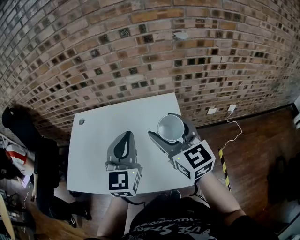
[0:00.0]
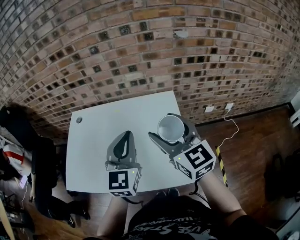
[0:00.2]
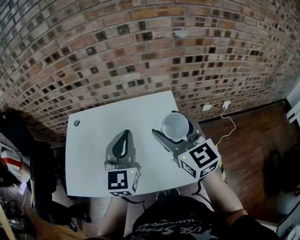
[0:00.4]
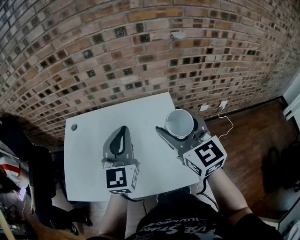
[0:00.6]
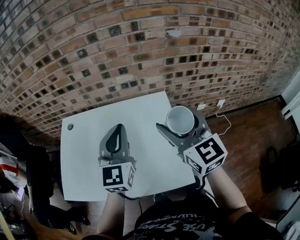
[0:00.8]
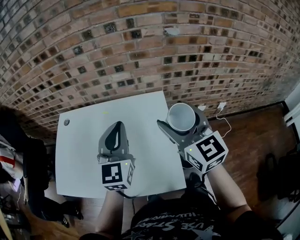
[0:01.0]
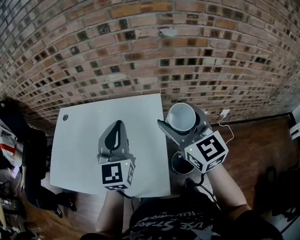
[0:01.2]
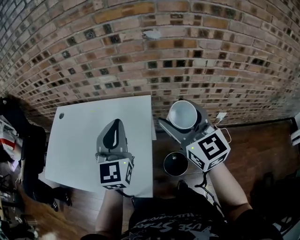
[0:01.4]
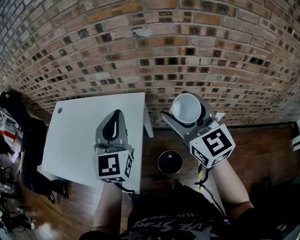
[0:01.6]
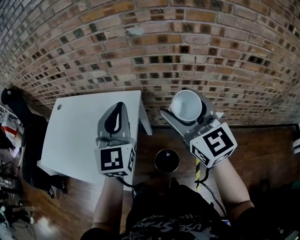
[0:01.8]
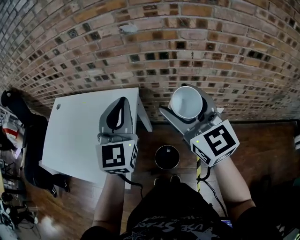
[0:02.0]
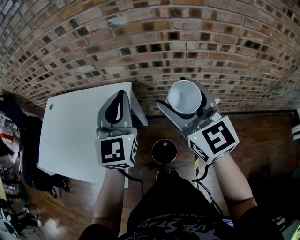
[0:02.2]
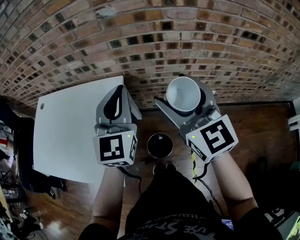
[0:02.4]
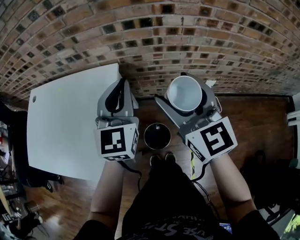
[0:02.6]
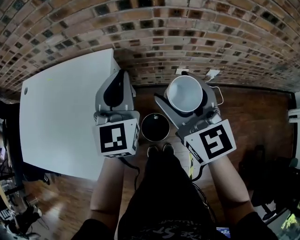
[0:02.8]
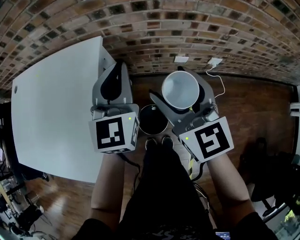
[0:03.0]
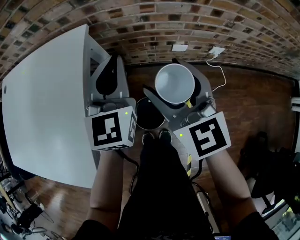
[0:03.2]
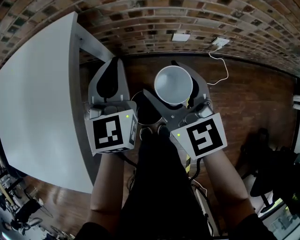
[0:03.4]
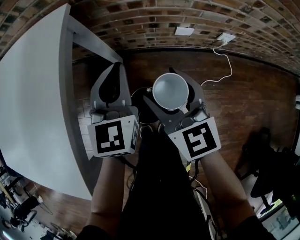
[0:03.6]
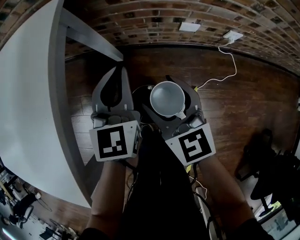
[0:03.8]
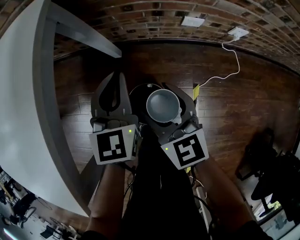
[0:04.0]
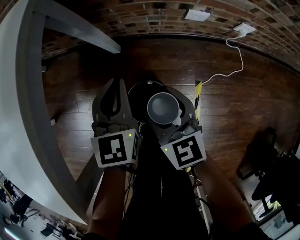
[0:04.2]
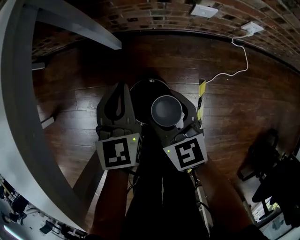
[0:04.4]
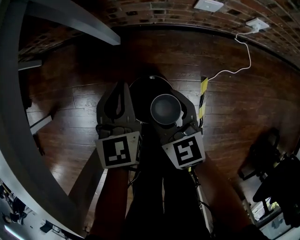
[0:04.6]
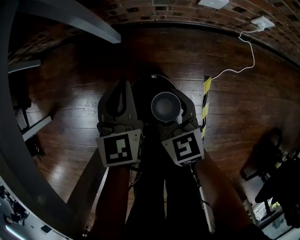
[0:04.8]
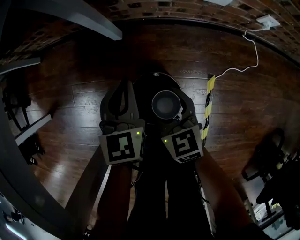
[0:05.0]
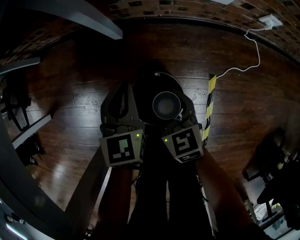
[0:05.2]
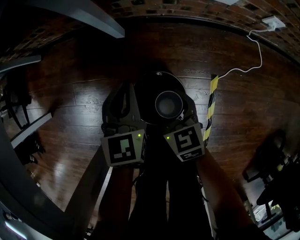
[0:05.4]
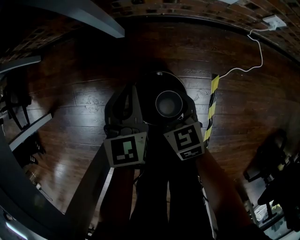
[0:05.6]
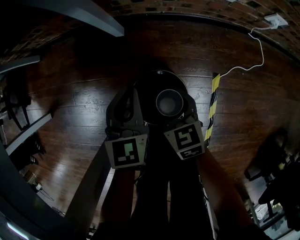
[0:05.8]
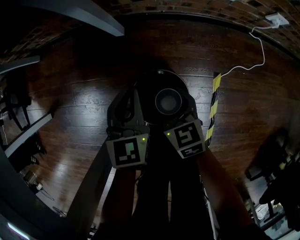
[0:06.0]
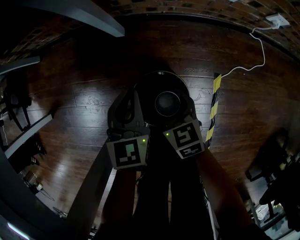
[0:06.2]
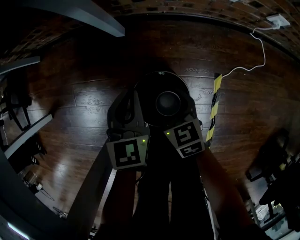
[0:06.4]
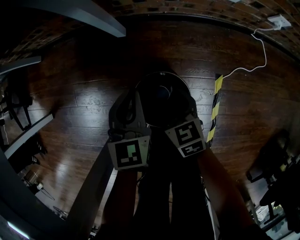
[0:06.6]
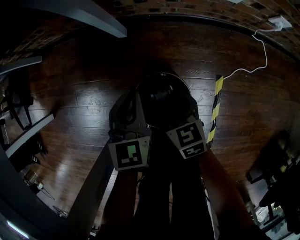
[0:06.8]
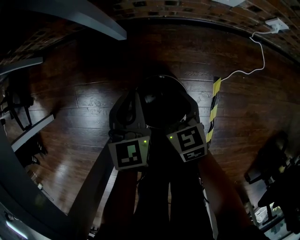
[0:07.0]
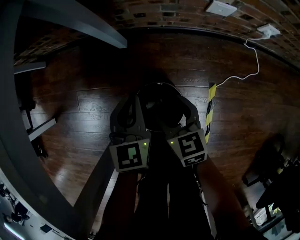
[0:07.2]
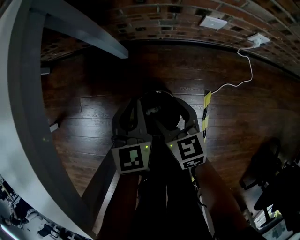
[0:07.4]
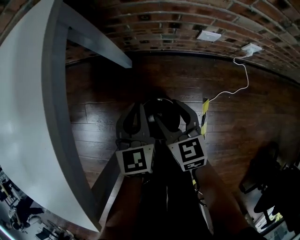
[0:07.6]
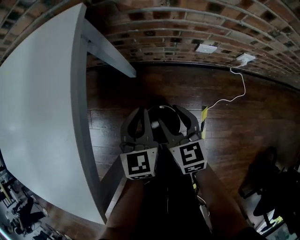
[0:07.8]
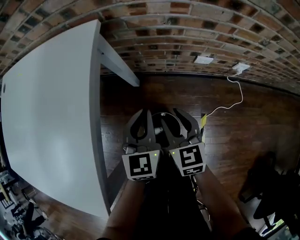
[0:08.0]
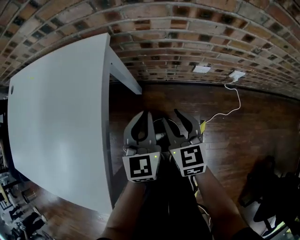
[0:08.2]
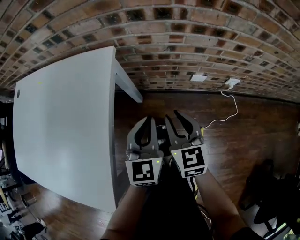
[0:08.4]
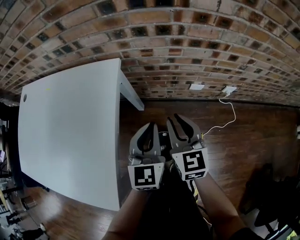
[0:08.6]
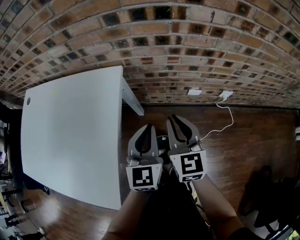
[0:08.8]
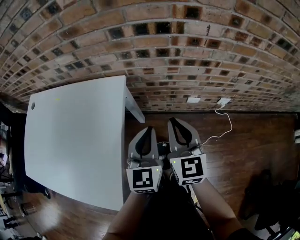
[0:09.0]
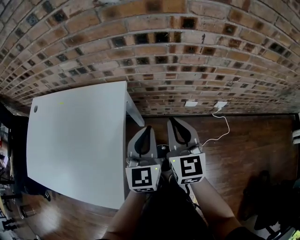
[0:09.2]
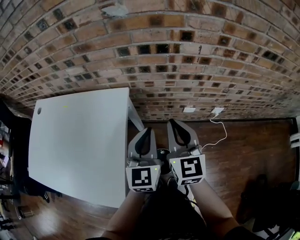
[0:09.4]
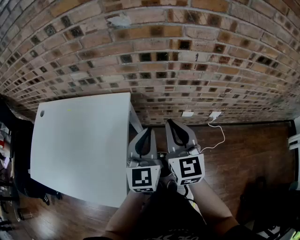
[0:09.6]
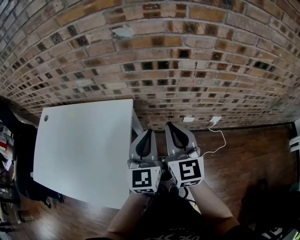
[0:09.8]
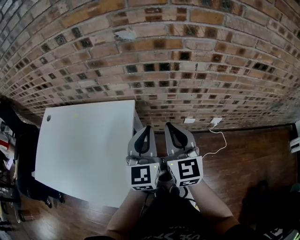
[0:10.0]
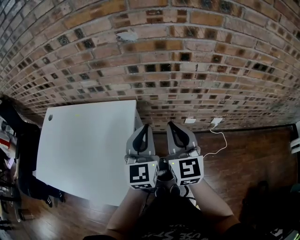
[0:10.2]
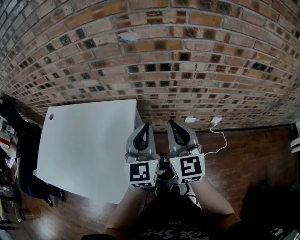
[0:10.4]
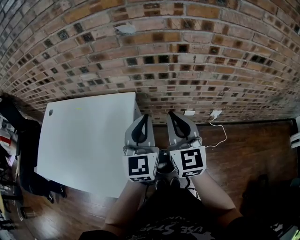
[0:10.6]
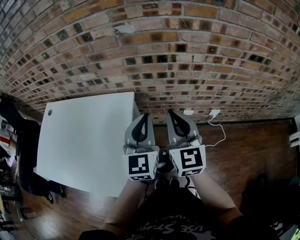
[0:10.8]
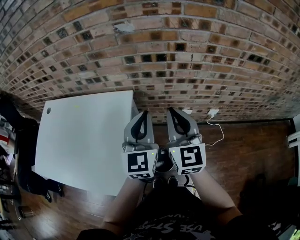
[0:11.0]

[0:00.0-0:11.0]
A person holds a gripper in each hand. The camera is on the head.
0.0 to 1.6 s: Both grippers travel together to the right, approximately 25 cm.
1.6 to 3.2 s: The right gripper is displaced downward by about 25 cm; the left gripper moves downward and to the right, some 30 cm.
3.2 to 4.8 s: Both grippers travel together downward, about 40 cm. The left gripper turns by about 20 degrees, while the right gripper changes its angle by about 20 degrees.
4.8 to 6.2 s: The grippers both shift downward by some 10 cm.
6.2 to 7.8 s: Both grippers travel together upward, about 20 cm. The right gripper closes up.
7.8 to 9.4 s: Both grippers move upward, about 35 cm. The right gripper changes its angle by some 30 degrees, and closes.
9.4 to 11.0 s: The grippers both shift upward by approximately 10 cm.

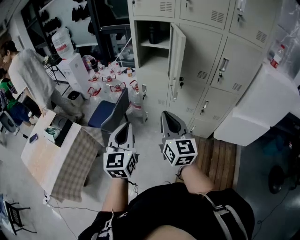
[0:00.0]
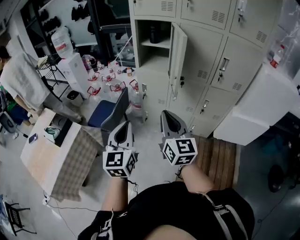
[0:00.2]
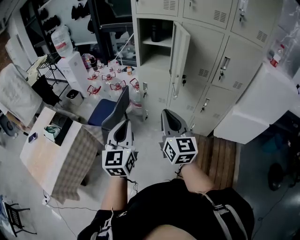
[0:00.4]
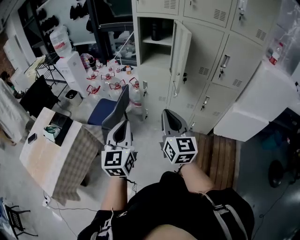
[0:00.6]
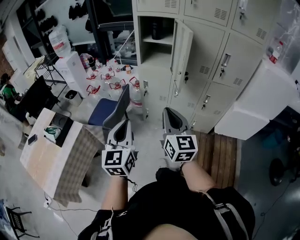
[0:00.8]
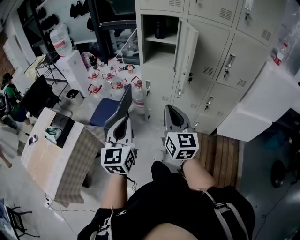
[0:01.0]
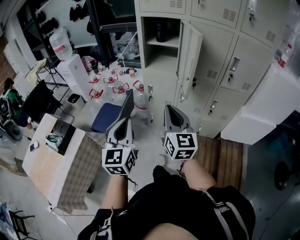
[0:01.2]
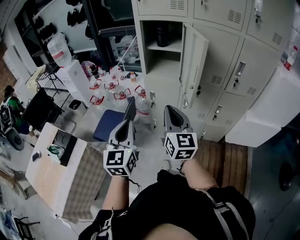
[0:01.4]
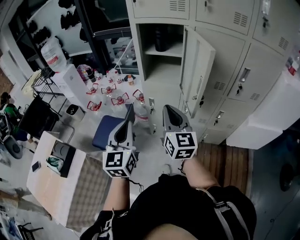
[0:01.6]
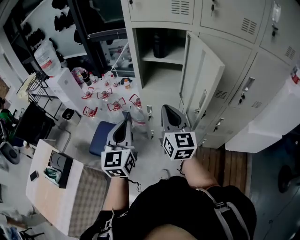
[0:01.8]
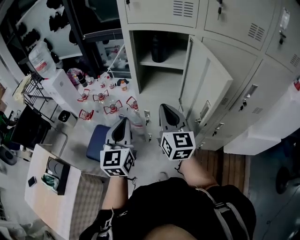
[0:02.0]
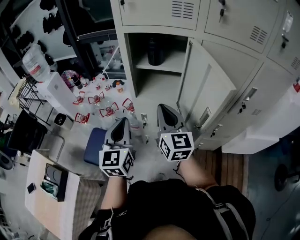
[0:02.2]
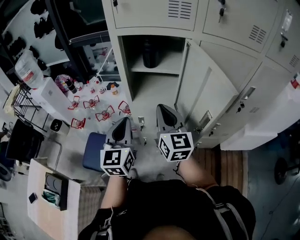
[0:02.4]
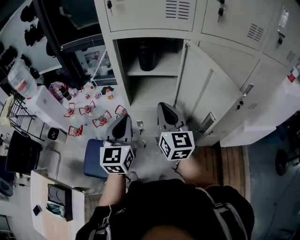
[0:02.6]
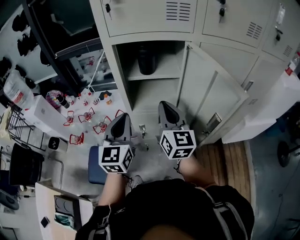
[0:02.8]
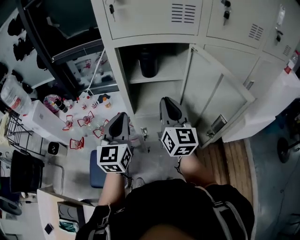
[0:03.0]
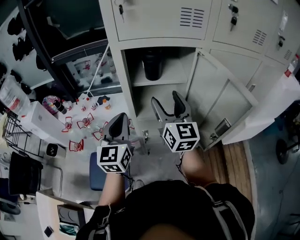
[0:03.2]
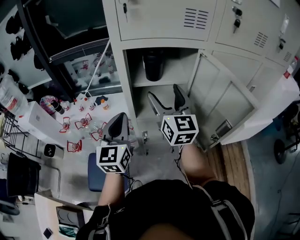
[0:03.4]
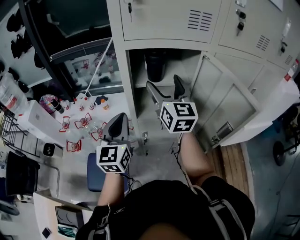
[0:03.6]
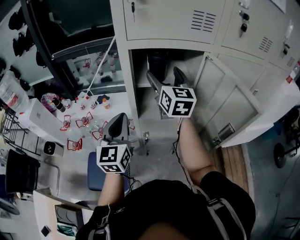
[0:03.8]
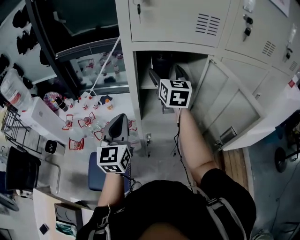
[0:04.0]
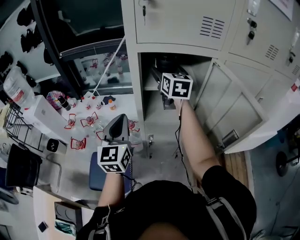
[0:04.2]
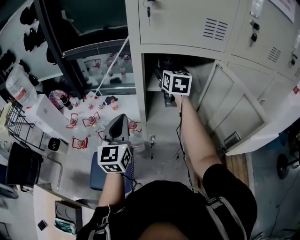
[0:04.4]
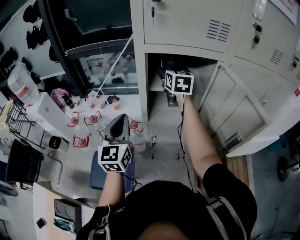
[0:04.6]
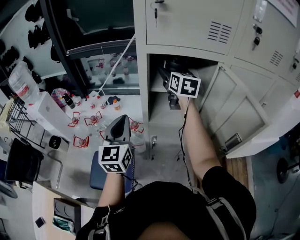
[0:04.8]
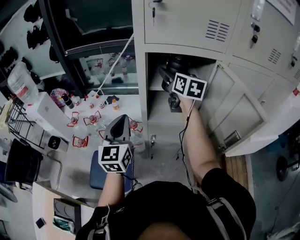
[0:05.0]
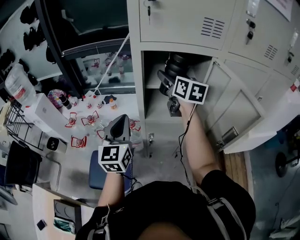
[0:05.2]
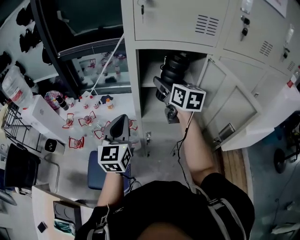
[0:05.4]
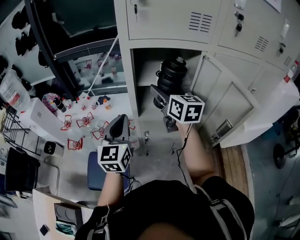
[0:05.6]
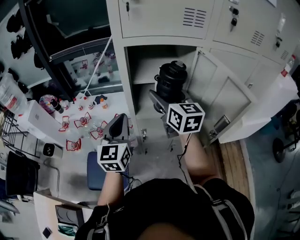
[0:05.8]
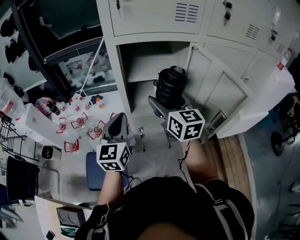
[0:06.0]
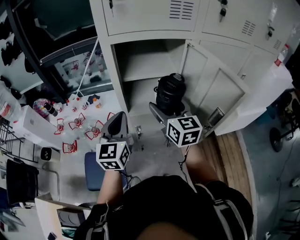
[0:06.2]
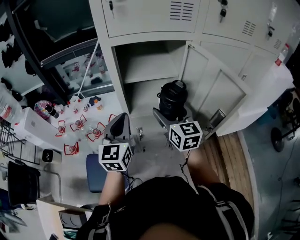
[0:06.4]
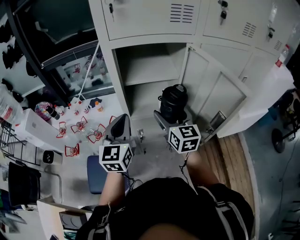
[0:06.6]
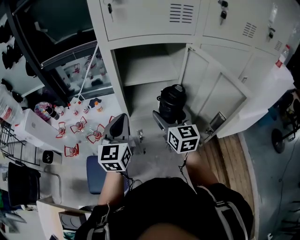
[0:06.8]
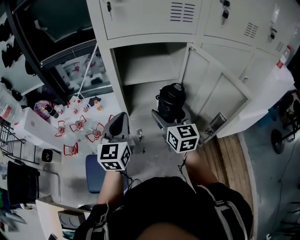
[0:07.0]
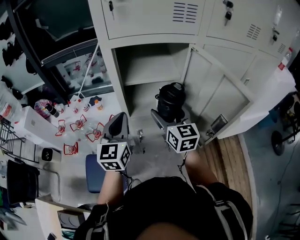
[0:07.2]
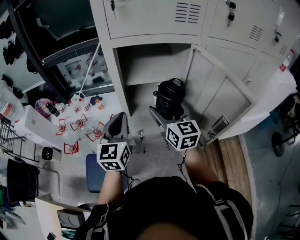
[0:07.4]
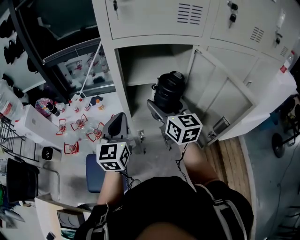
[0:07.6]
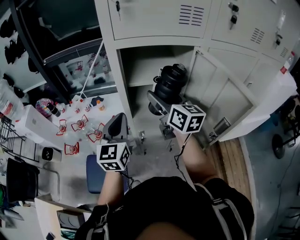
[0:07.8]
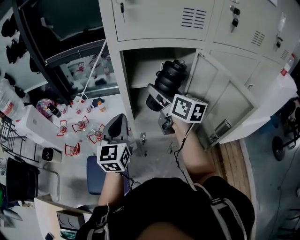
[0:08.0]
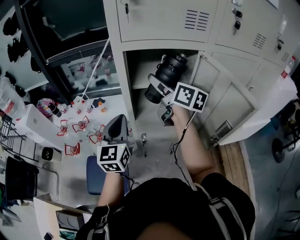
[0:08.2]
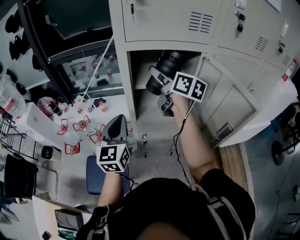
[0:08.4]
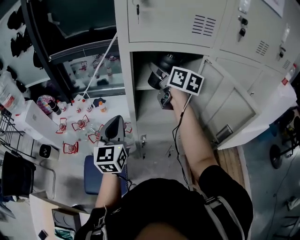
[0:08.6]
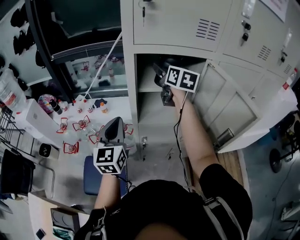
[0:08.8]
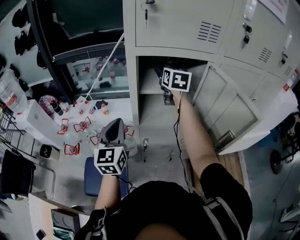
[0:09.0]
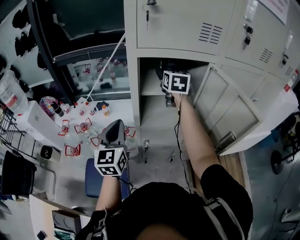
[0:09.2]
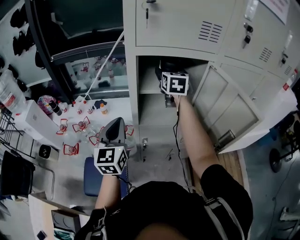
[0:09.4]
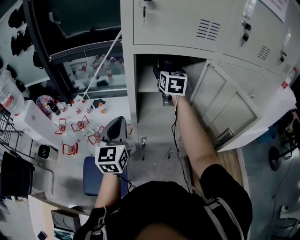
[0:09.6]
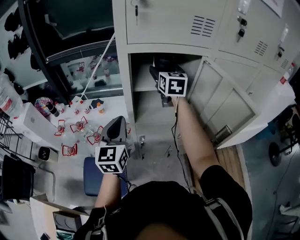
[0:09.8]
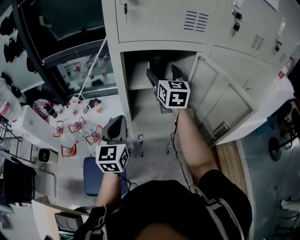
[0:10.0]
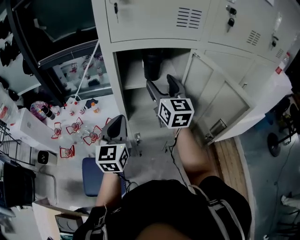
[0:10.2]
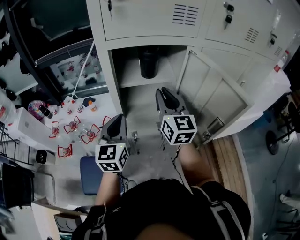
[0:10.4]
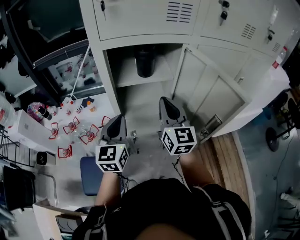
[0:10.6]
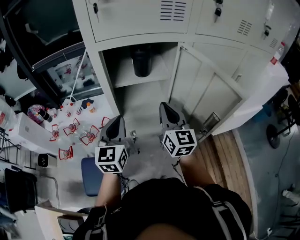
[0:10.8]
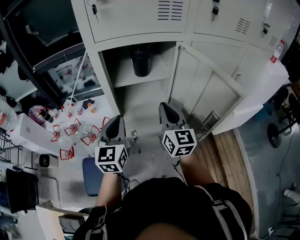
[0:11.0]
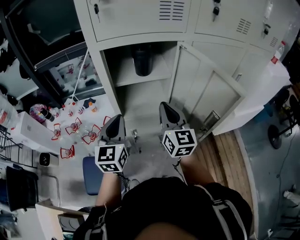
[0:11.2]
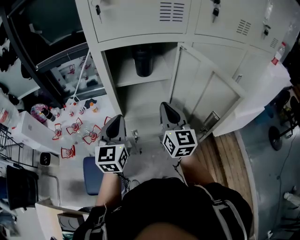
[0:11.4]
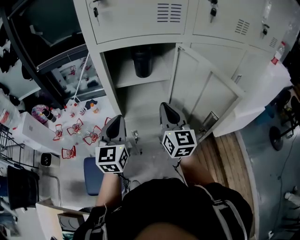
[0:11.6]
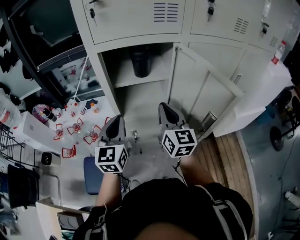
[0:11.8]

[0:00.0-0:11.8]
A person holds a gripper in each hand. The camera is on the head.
0.0 to 1.4 s: The grippers both shift forward and to the left by roughly 15 cm.
1.4 to 3.0 s: Both grippers move forward, some 40 cm.
3.0 to 4.4 s: The right gripper heads forward, covering approximately 20 cm, and opens; the left gripper moves to the left, roughly 5 cm.
4.4 to 6.0 s: The left gripper goes approximately 5 cm to the right. The right gripper moves backward, roughly 20 cm.
7.4 to 8.8 s: The left gripper heads to the left, covering approximately 5 cm. Meanwhile the right gripper travels forward and upward by roughly 20 cm.
8.8 to 10.4 s: The right gripper heads backward, covering roughly 15 cm, and closes its fingers, while the left gripper heads to the right, covering roughly 5 cm.
10.4 to 11.8 s: The right gripper moves backward, roughly 5 cm.

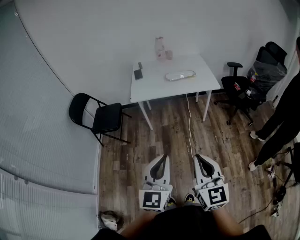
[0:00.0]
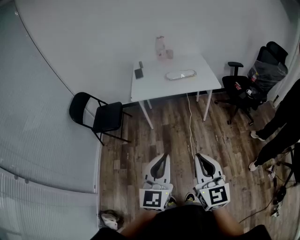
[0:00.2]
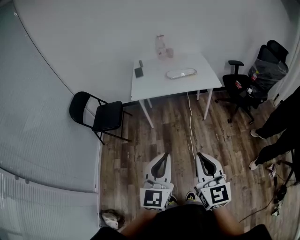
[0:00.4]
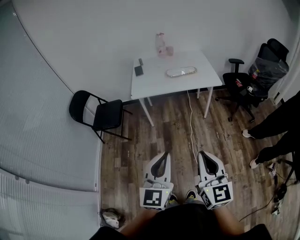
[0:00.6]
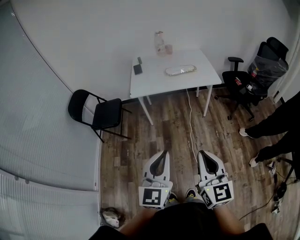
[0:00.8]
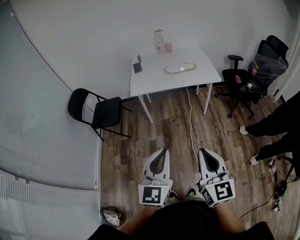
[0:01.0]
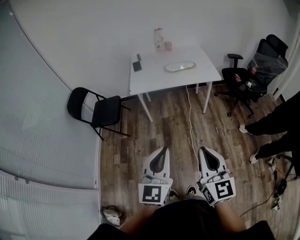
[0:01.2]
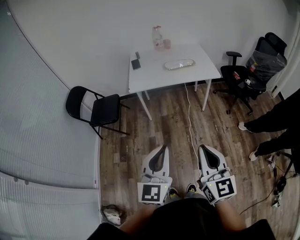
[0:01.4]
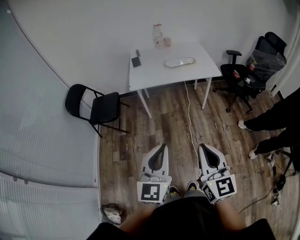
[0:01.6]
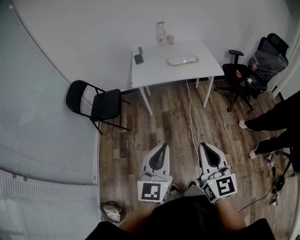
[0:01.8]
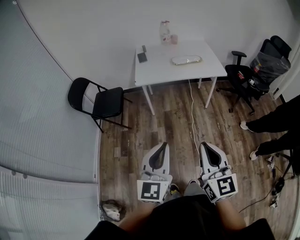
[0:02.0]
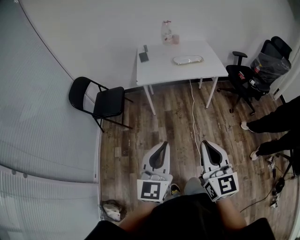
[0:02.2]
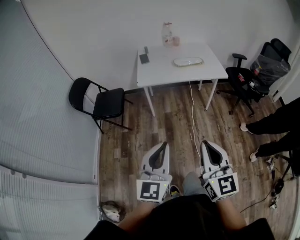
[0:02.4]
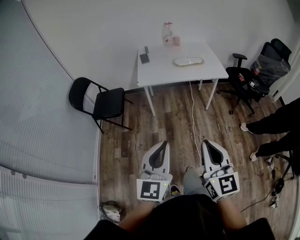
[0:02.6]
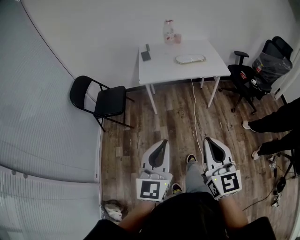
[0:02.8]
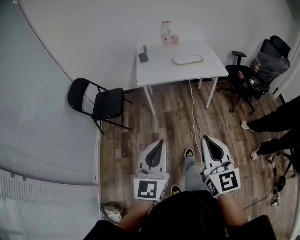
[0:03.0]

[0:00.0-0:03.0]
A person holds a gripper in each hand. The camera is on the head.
0.0 to 1.6 s: There are only small adjustments of the grippers.
1.6 to 3.0 s: The two grippers go approximately 5 cm to the left.
